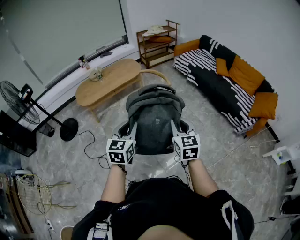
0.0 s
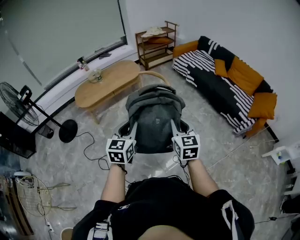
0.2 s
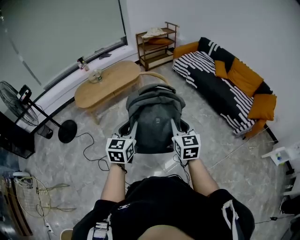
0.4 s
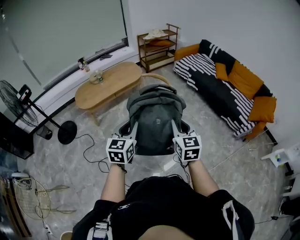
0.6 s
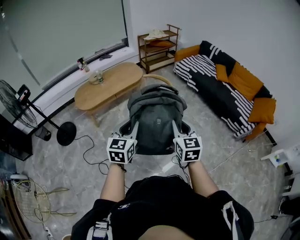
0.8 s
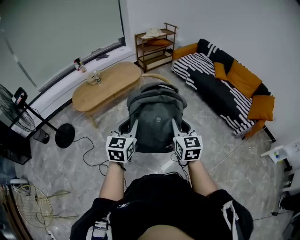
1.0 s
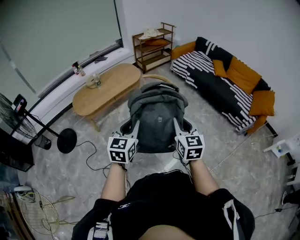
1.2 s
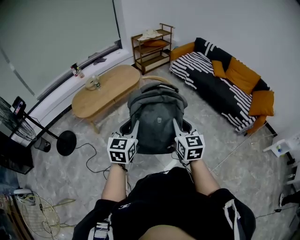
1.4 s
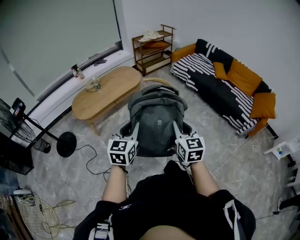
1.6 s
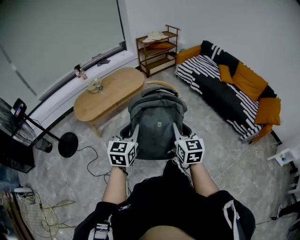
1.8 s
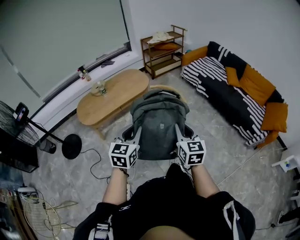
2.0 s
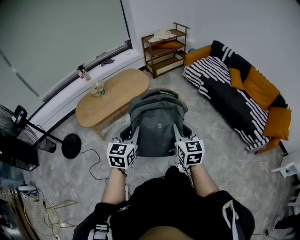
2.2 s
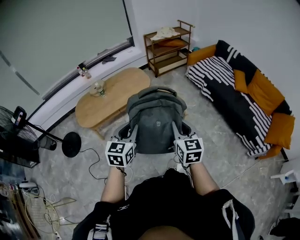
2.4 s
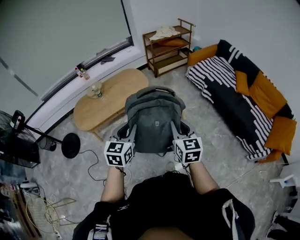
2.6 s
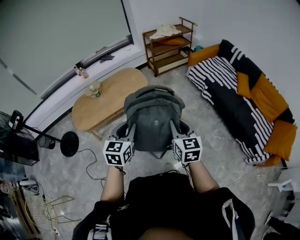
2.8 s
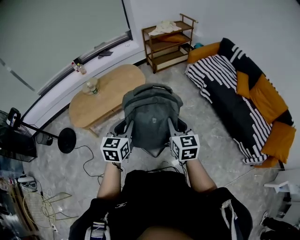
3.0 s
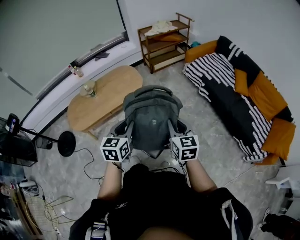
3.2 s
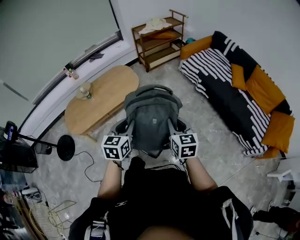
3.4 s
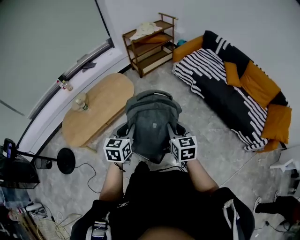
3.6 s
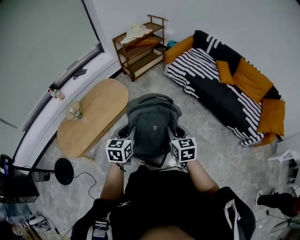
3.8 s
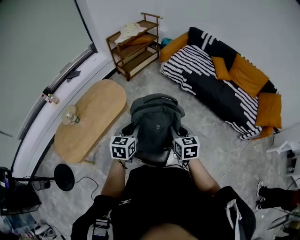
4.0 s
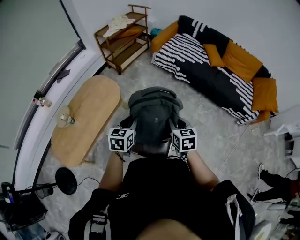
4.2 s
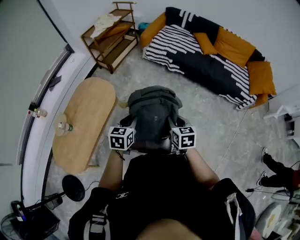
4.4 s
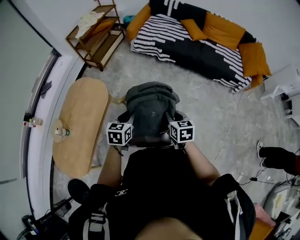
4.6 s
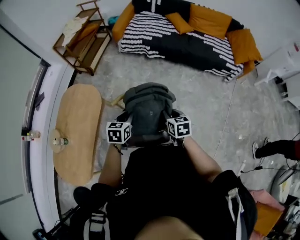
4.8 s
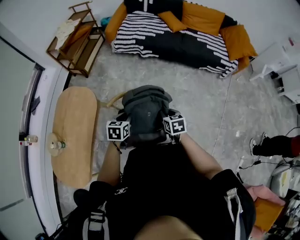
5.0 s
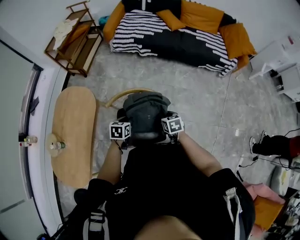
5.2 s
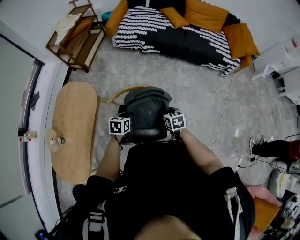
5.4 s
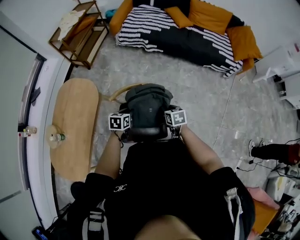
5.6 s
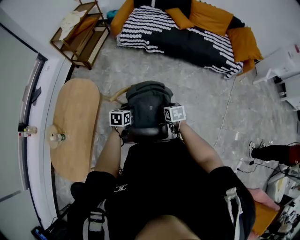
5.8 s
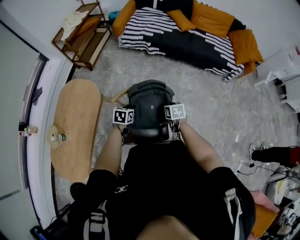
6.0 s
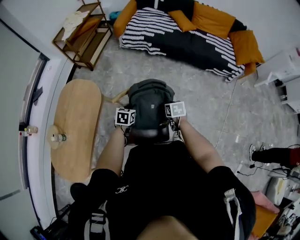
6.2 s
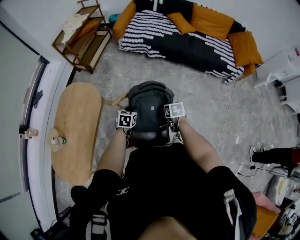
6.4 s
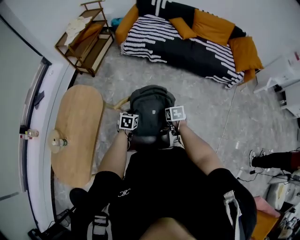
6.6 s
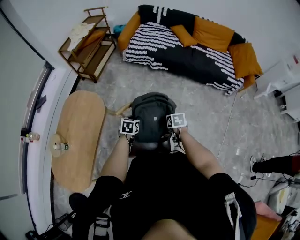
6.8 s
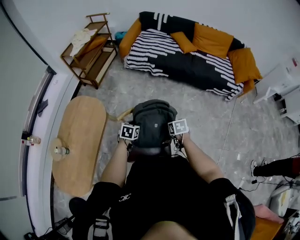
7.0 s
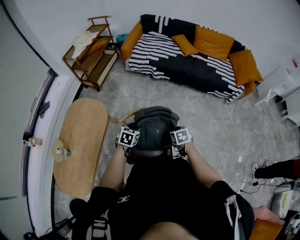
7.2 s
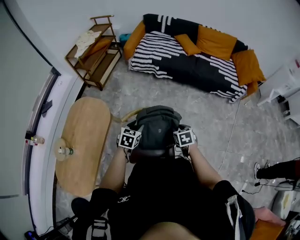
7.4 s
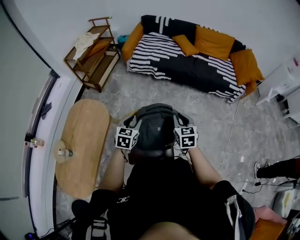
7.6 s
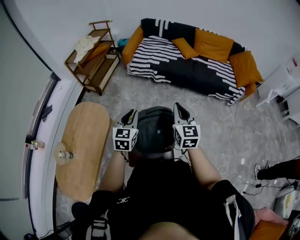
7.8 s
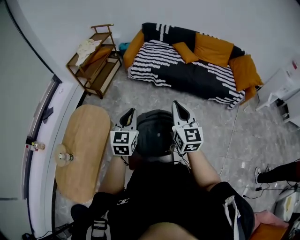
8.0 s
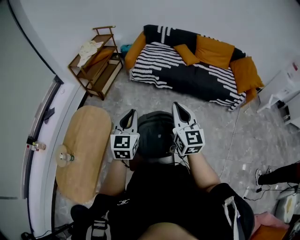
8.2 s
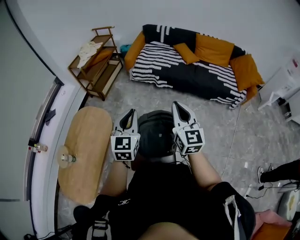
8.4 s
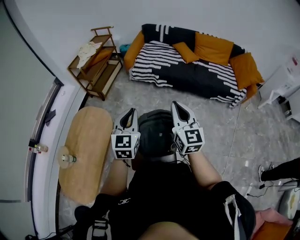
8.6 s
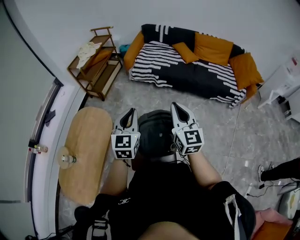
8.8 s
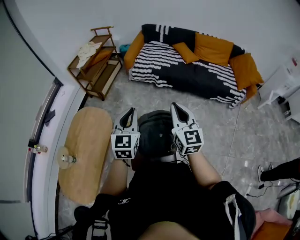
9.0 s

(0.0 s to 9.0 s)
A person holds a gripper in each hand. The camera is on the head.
0.0 s - 1.6 s: The grippers both shift to the left and forward by approximately 20 cm.
1.6 s - 3.0 s: Both grippers are carried forward, roughly 50 cm.
3.0 s - 4.4 s: The left gripper ends up roughly 30 cm from where it was, and rotates about 40 degrees. The right gripper goes about 15 cm downward, and swivels roughly 40 degrees.
4.4 s - 6.0 s: The grippers both shift downward by roughly 20 cm. The left gripper turns by approximately 20 degrees. The right gripper rotates about 20 degrees.
6.0 s - 7.6 s: The two grippers go about 15 cm upward. The right gripper rotates some 30 degrees, while the left gripper rotates roughly 20 degrees, and opens.
7.6 s - 9.0 s: The two grippers go about 20 cm upward. The right gripper rotates roughly 30 degrees. Meanwhile the left gripper changes its angle by about 30 degrees, and closes up.

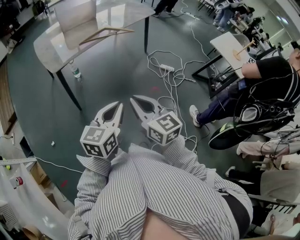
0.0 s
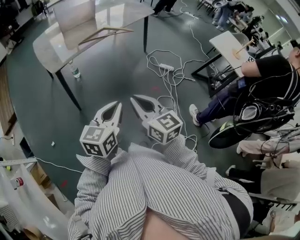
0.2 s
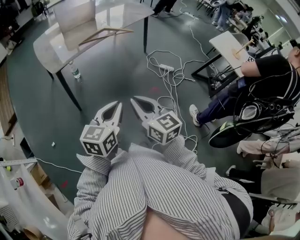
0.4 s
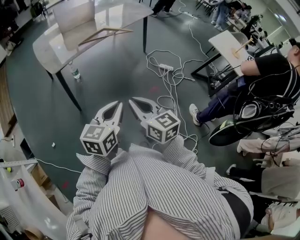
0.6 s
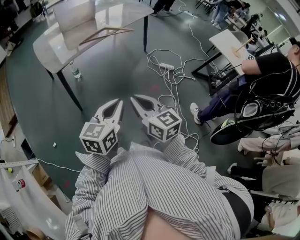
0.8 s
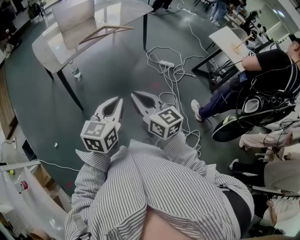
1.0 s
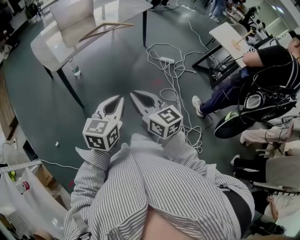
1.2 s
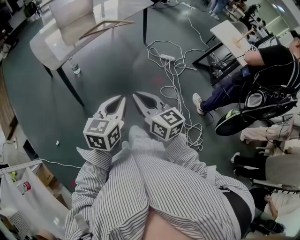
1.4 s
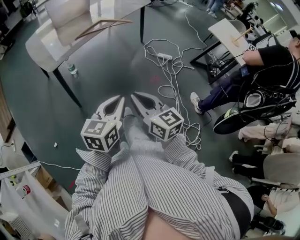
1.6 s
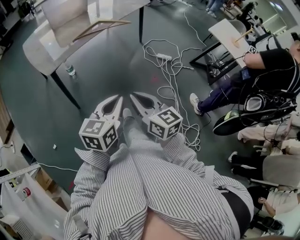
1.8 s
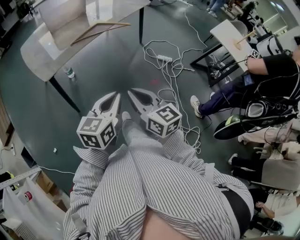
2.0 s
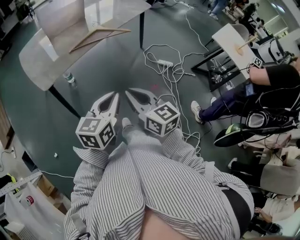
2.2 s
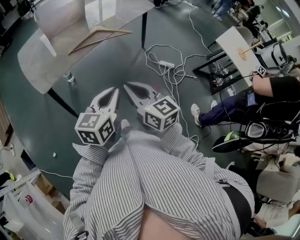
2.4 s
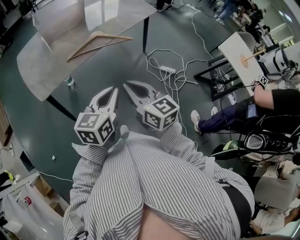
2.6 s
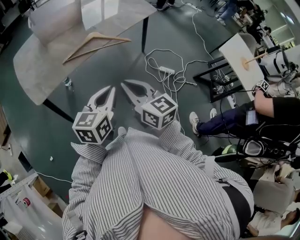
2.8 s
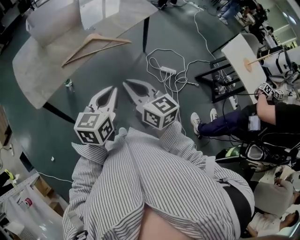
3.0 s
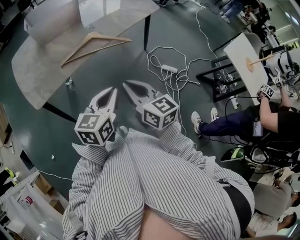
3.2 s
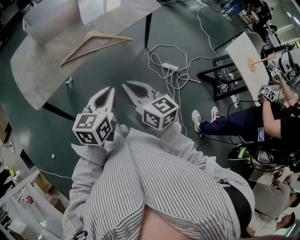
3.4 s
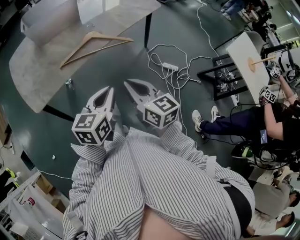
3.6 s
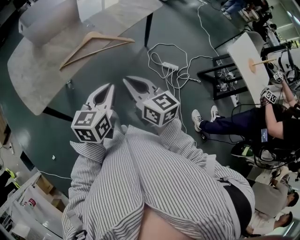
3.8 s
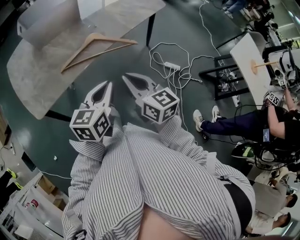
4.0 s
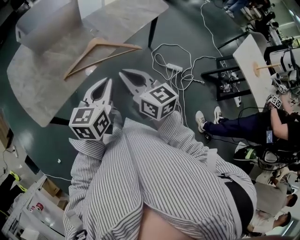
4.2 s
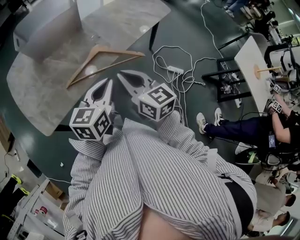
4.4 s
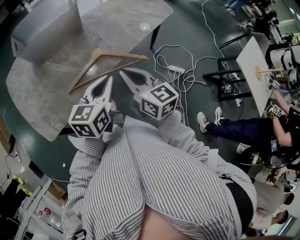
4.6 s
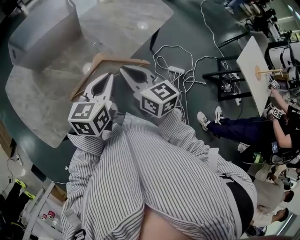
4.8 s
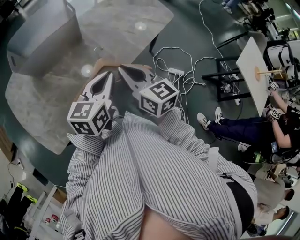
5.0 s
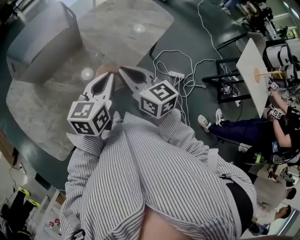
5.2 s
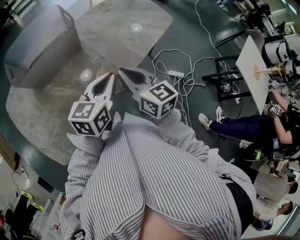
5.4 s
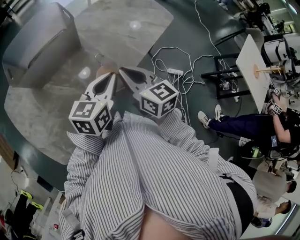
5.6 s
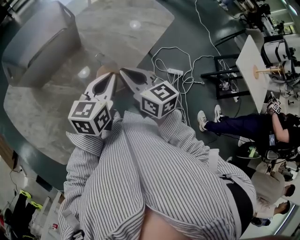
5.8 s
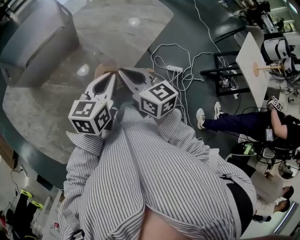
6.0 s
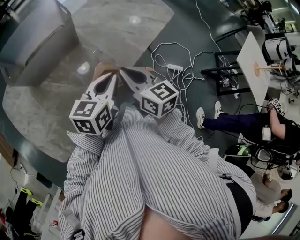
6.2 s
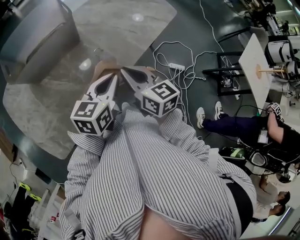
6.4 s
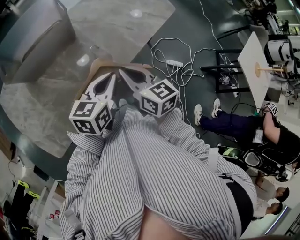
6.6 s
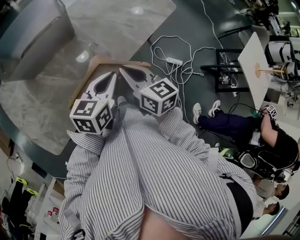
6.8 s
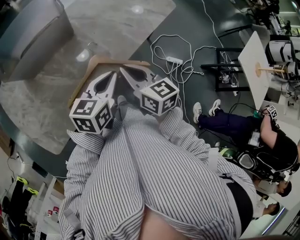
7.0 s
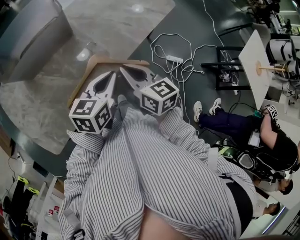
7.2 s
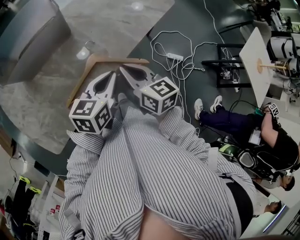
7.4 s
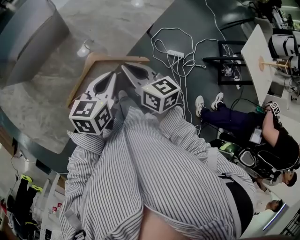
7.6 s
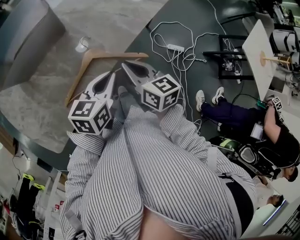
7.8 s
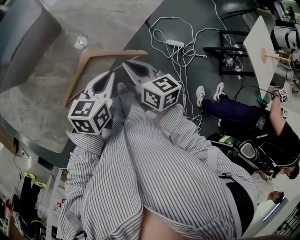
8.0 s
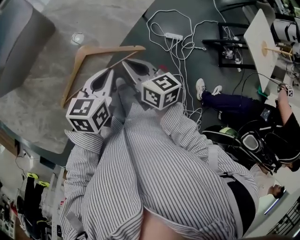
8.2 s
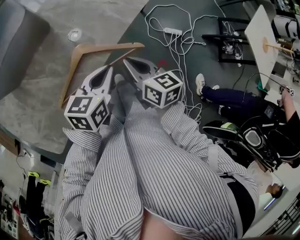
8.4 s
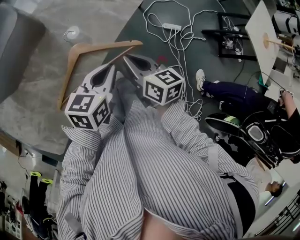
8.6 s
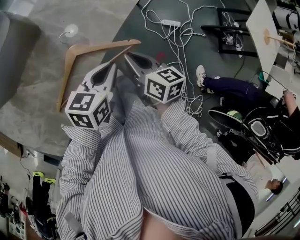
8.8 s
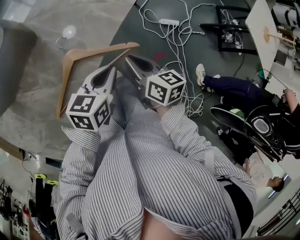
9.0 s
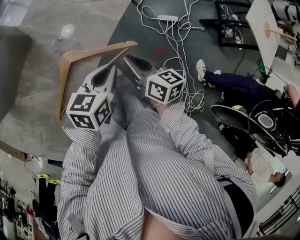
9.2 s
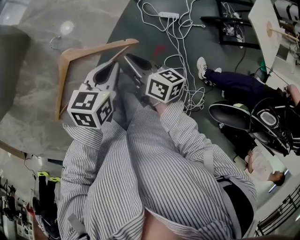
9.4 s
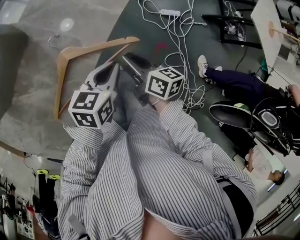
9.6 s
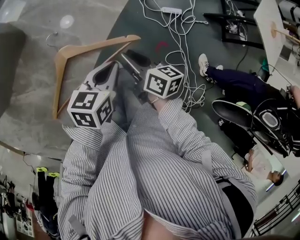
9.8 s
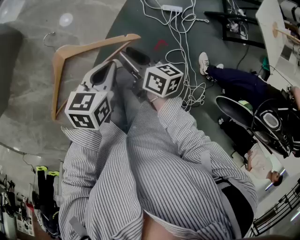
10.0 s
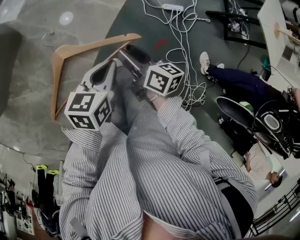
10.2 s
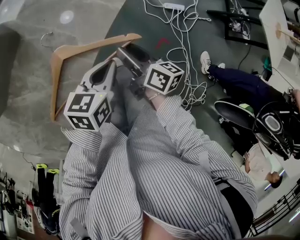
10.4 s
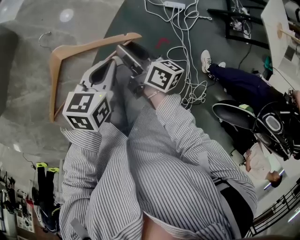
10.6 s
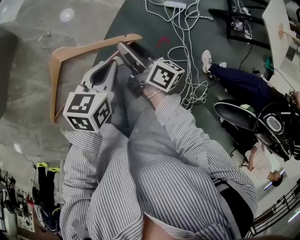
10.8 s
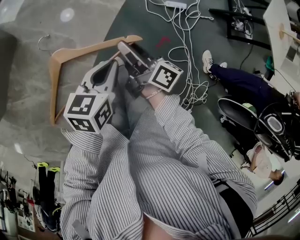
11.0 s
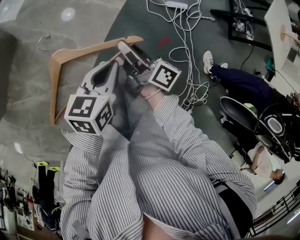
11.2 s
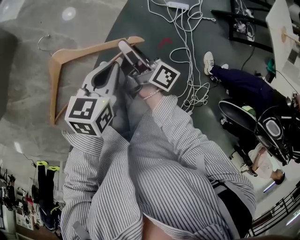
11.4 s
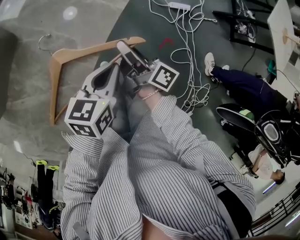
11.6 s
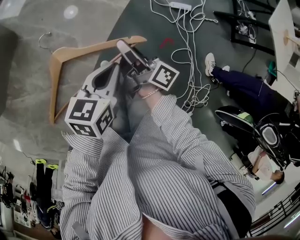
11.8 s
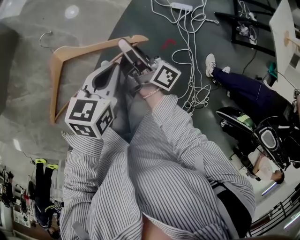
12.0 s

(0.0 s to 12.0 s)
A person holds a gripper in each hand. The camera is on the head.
0.0 s - 1.6 s: The right gripper changes place by some 5 cm.
1.6 s - 3.0 s: Both grippers travel together forward, about 35 cm.
3.0 s - 4.4 s: Both grippers move forward, some 20 cm.
4.4 s - 6.0 s: The grippers both shift forward by approximately 15 cm.
6.0 s - 7.6 s: The right gripper travels to the right by approximately 5 cm. Meanwhile the left gripper changes place by some 5 cm.
7.6 s - 9.0 s: The grippers both shift downward and to the right by about 10 cm. The right gripper changes its angle by approximately 20 degrees.
9.0 s - 10.4 s: Both grippers move downward, about 5 cm. The right gripper opens up.
10.4 s - 12.0 s: The right gripper rotates some 30 degrees, and closes up.

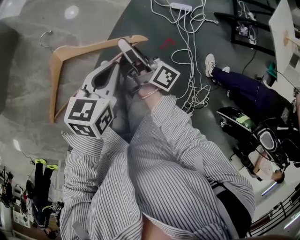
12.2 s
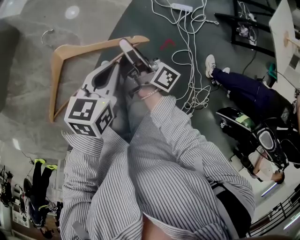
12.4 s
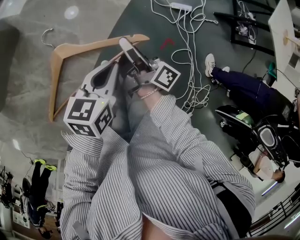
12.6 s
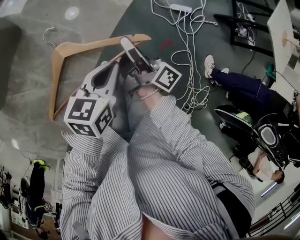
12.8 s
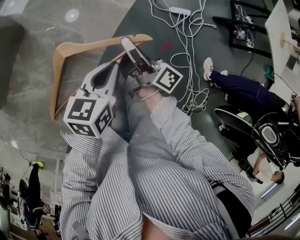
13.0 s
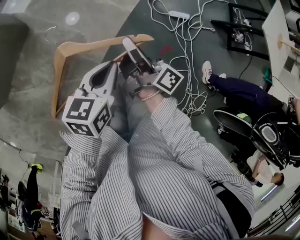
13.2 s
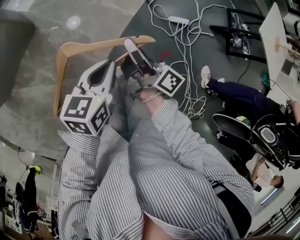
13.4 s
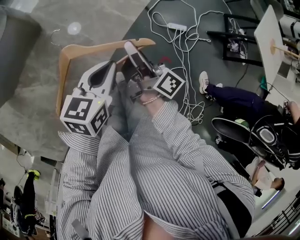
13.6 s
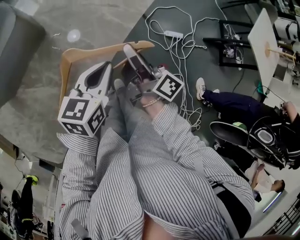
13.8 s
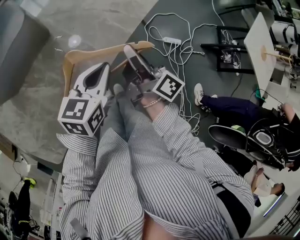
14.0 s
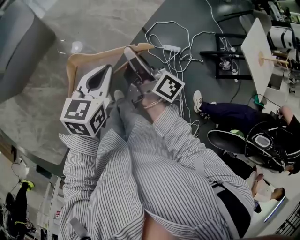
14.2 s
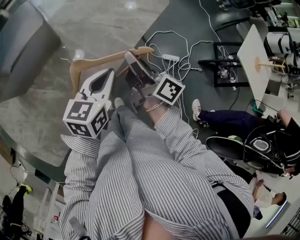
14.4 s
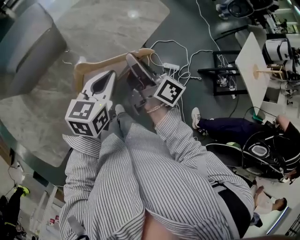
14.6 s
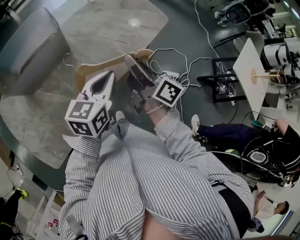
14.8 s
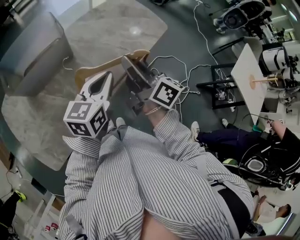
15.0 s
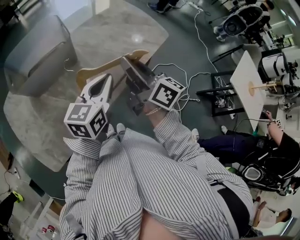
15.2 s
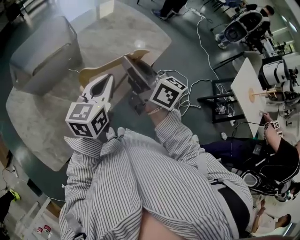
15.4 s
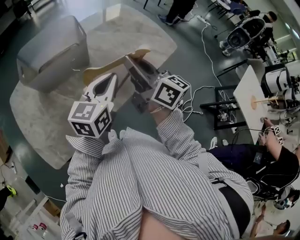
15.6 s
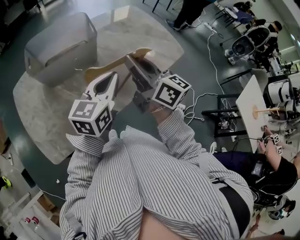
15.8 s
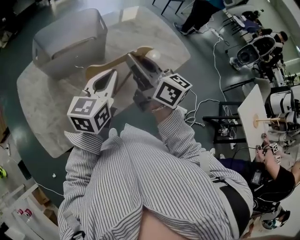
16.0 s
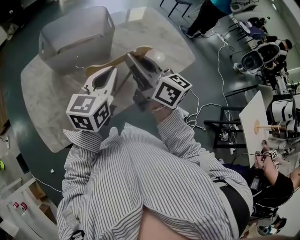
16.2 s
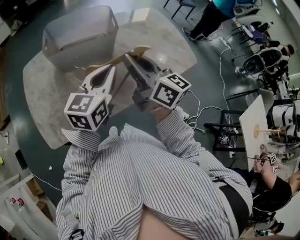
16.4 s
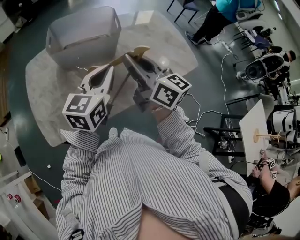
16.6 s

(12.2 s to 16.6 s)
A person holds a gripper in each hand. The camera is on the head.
12.2 s - 13.6 s: The grippers both shift upward by roughly 10 cm.
13.6 s - 15.2 s: Both grippers travel together upward, some 20 cm. The left gripper changes its angle by approximately 20 degrees. Meanwhile the right gripper swivels some 40 degrees.
15.2 s - 16.6 s: The left gripper shifts about 15 cm to the left and upward, and turns by some 20 degrees. The right gripper heads to the left, covering some 15 cm, and changes its angle by roughly 30 degrees.
